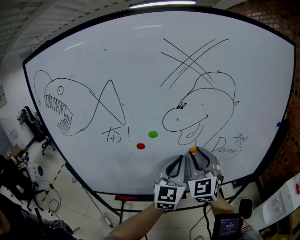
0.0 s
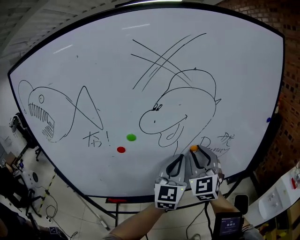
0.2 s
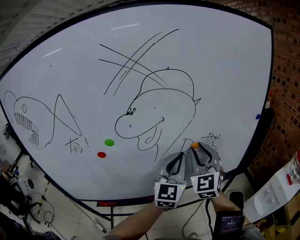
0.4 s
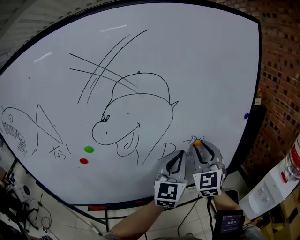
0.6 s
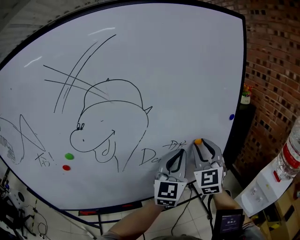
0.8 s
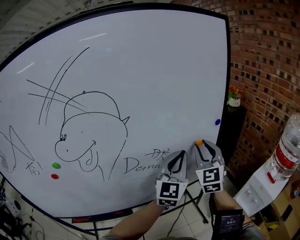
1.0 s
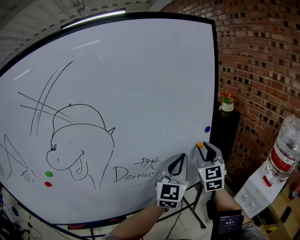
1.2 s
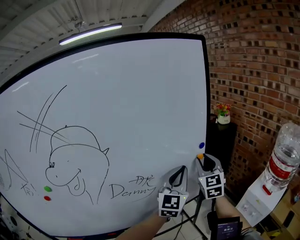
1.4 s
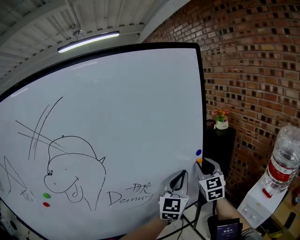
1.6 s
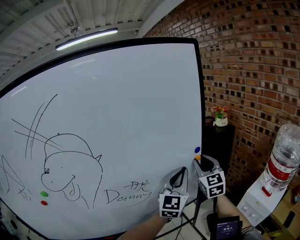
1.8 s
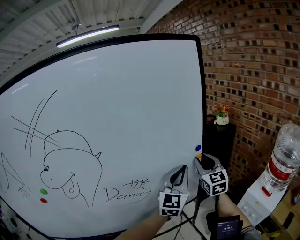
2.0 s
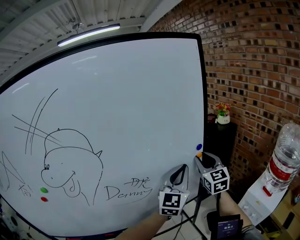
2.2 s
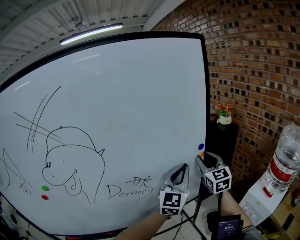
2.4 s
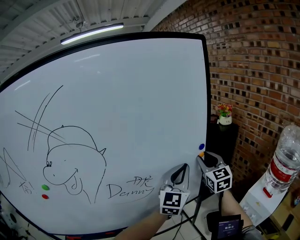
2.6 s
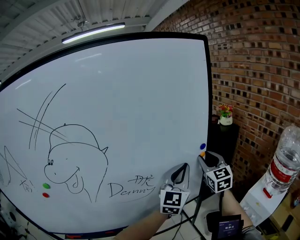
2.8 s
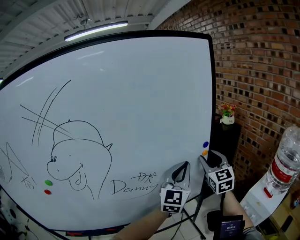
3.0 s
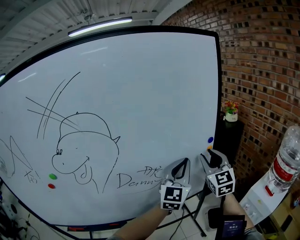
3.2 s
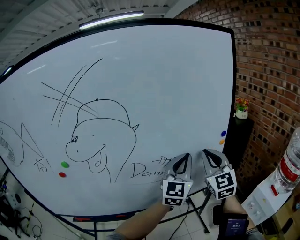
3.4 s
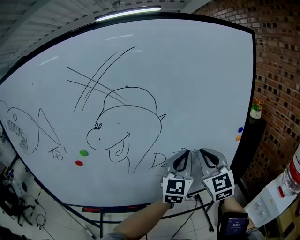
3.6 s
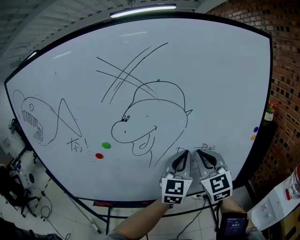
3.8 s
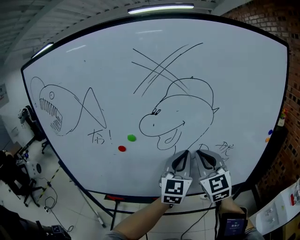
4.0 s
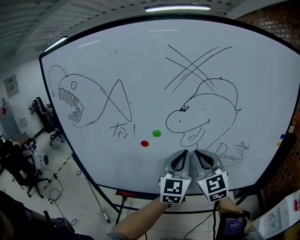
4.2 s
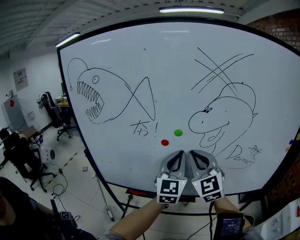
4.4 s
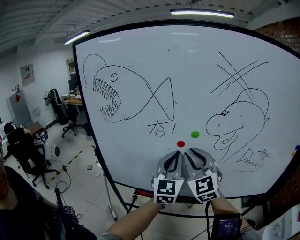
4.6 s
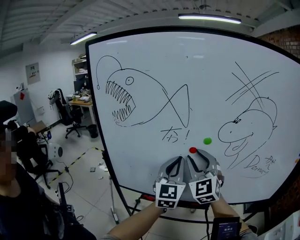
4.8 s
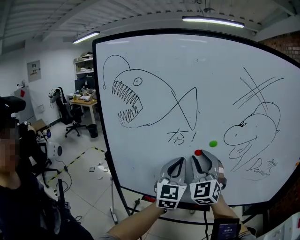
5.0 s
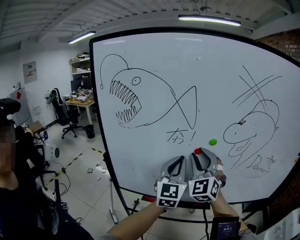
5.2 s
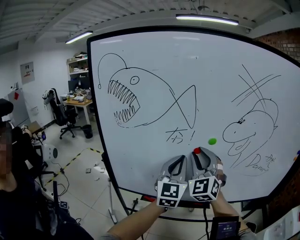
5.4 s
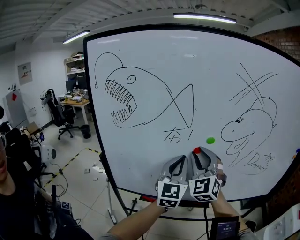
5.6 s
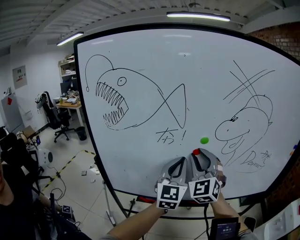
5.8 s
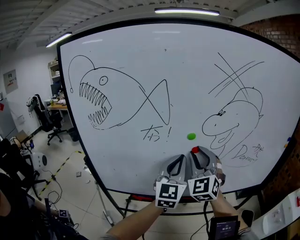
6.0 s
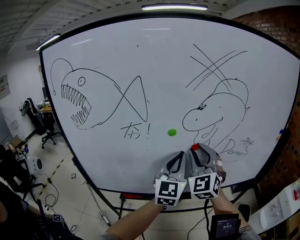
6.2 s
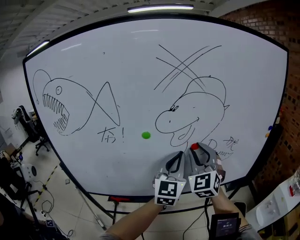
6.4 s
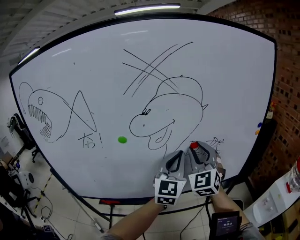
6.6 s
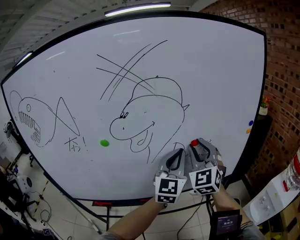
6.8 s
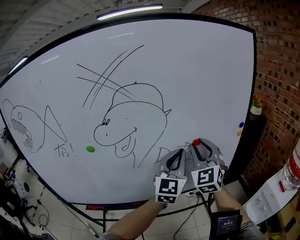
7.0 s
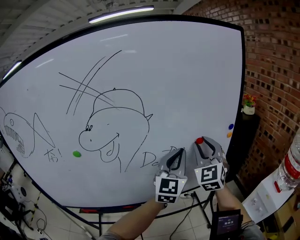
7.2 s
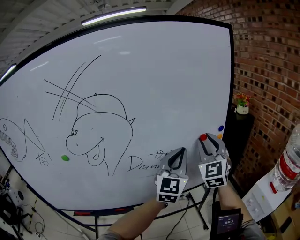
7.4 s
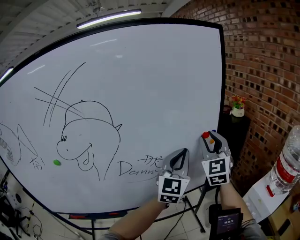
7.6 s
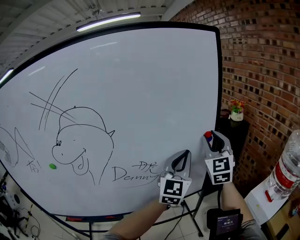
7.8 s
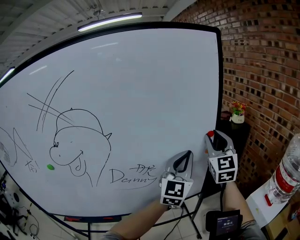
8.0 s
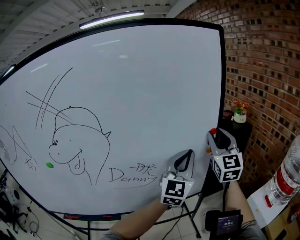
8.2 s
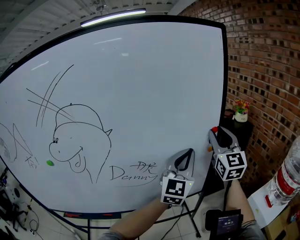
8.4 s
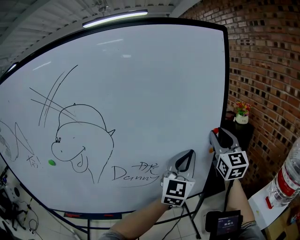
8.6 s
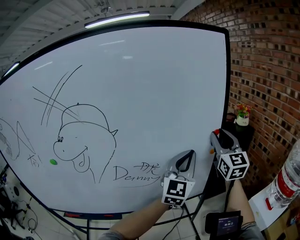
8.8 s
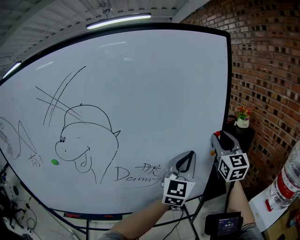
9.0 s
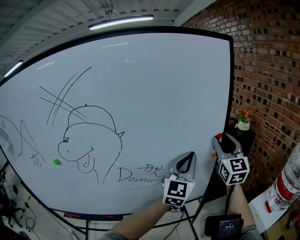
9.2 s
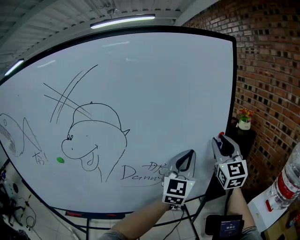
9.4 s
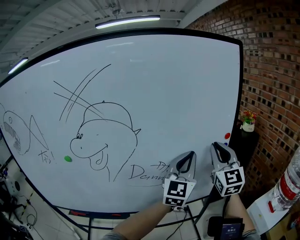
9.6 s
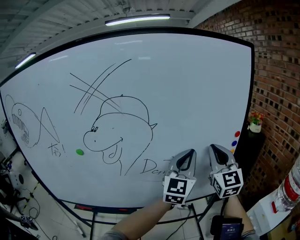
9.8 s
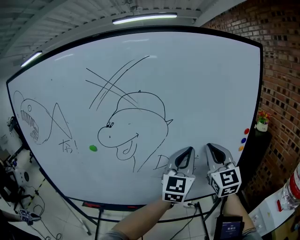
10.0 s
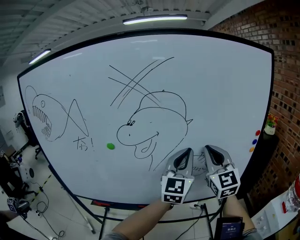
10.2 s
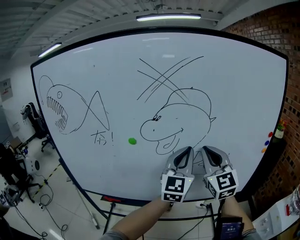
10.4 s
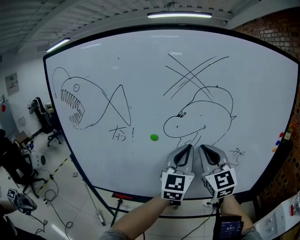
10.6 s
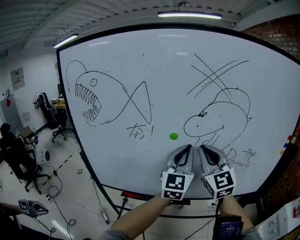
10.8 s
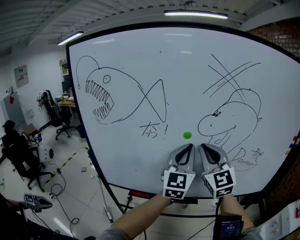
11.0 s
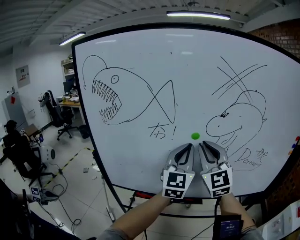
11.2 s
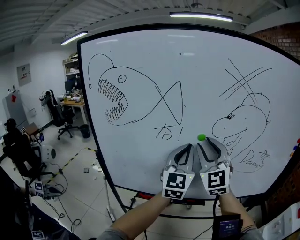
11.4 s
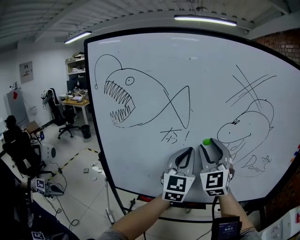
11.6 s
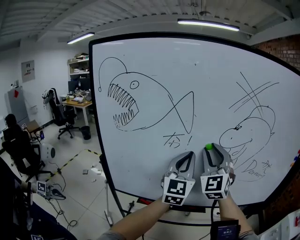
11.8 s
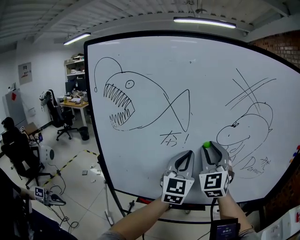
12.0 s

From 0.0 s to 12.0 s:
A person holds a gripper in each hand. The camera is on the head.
From 0.0 s to 1.6 s: Both grippers are carried approximately 50 cm. The right gripper changes its angle by some 30 degrees. The left gripper rotates approximately 30 degrees.
From 1.6 s to 3.0 s: The grippers stay close to where they were, moving slightly.
From 3.0 s to 4.4 s: Both grippers are carried about 60 cm. The left gripper swivels approximately 40 degrees. Meanwhile the right gripper changes its angle by approximately 40 degrees, and closes.
From 4.4 s to 6.0 s: The right gripper moves about 10 cm to the left and comes back, turns by about 20 degrees, and opens up.
From 6.0 s to 7.6 s: The pair of grippers is taken to the right, about 50 cm. The right gripper swivels roughly 30 degrees; the left gripper rotates about 20 degrees.
From 7.6 s to 9.0 s: The right gripper changes place by some 5 cm, and swivels some 20 degrees.
From 9.0 s to 10.4 s: The right gripper heads to the left and backward, covering roughly 40 cm, swivels about 20 degrees, and closes; the left gripper travels to the left by about 30 cm.
From 10.4 s to 12.0 s: The grippers both shift to the left by some 25 cm. The right gripper swivels roughly 20 degrees, and opens up.

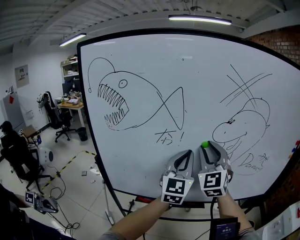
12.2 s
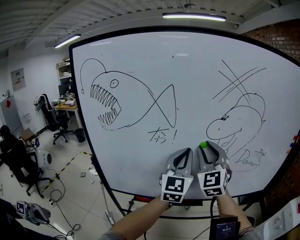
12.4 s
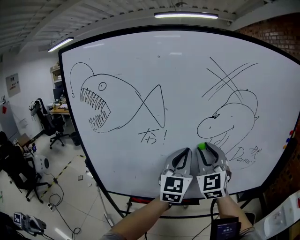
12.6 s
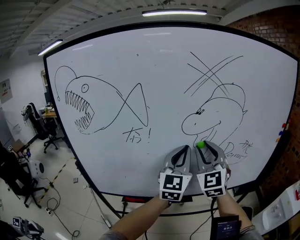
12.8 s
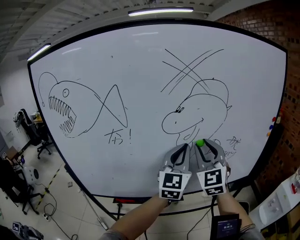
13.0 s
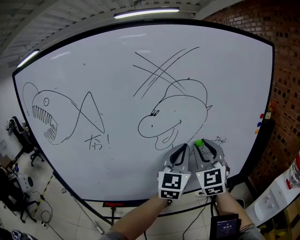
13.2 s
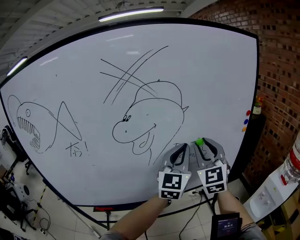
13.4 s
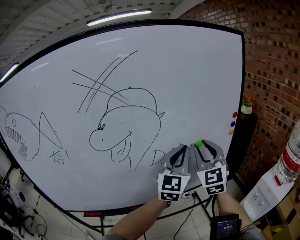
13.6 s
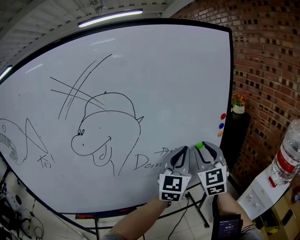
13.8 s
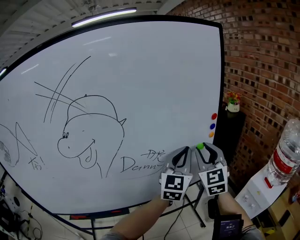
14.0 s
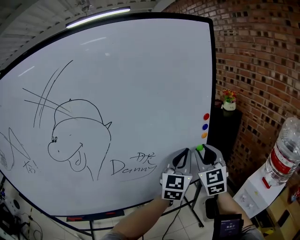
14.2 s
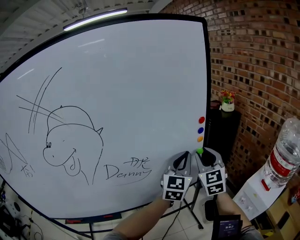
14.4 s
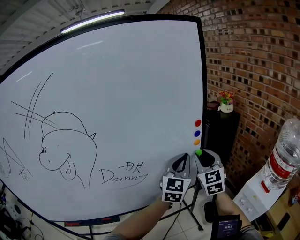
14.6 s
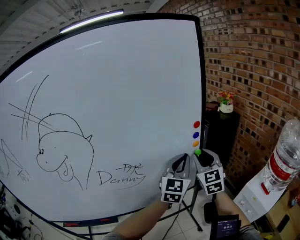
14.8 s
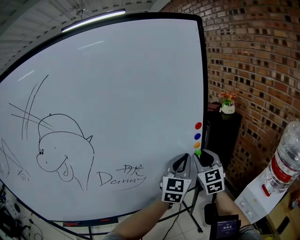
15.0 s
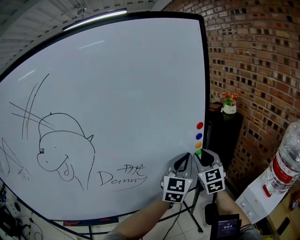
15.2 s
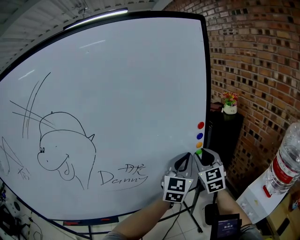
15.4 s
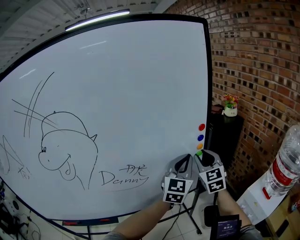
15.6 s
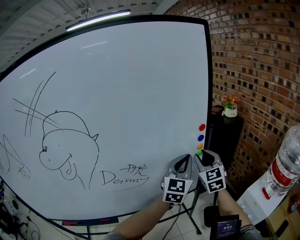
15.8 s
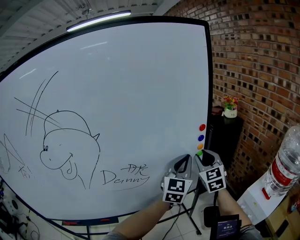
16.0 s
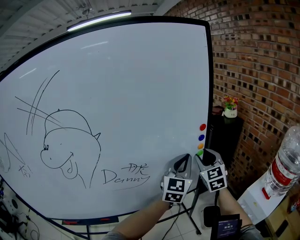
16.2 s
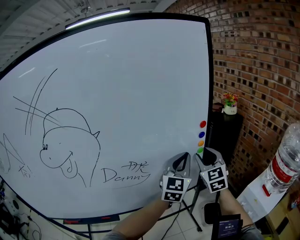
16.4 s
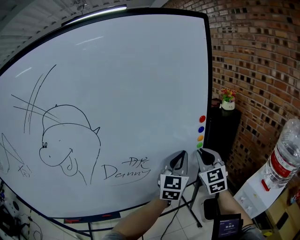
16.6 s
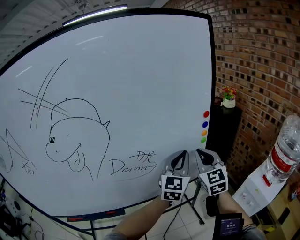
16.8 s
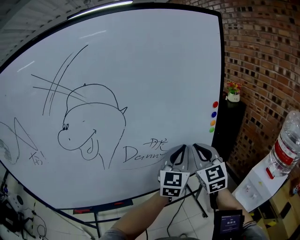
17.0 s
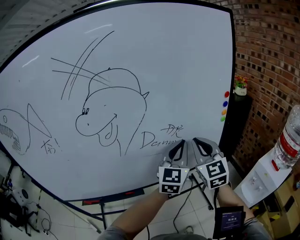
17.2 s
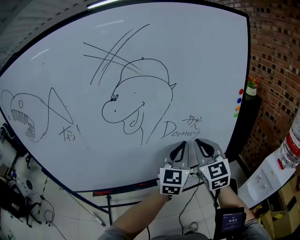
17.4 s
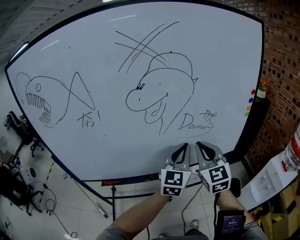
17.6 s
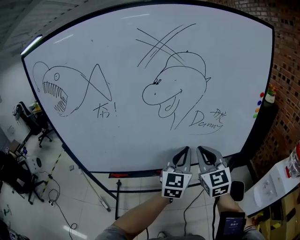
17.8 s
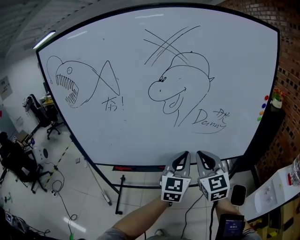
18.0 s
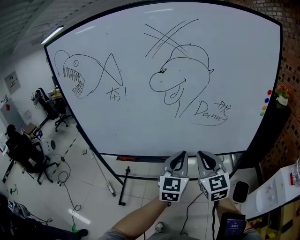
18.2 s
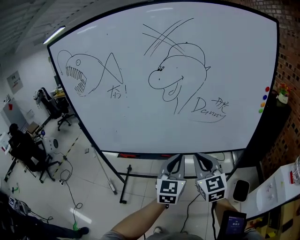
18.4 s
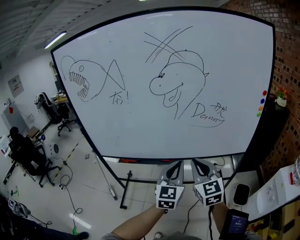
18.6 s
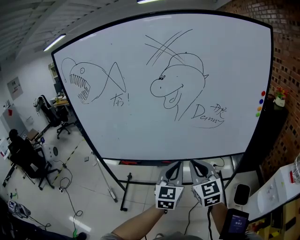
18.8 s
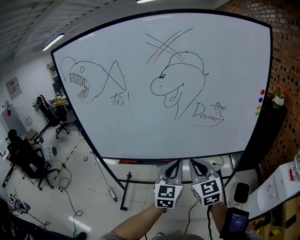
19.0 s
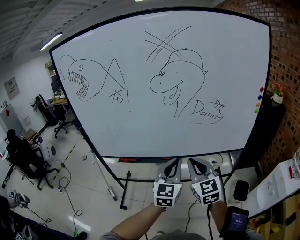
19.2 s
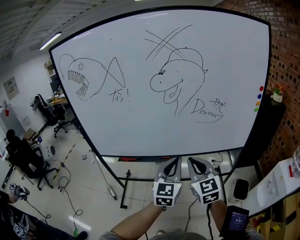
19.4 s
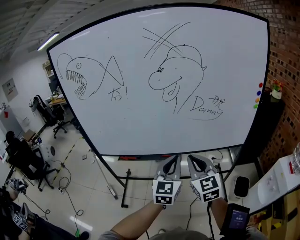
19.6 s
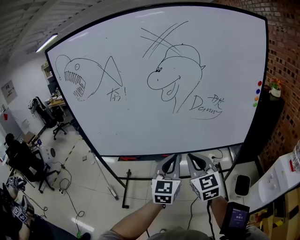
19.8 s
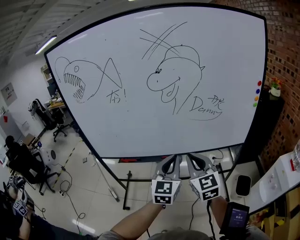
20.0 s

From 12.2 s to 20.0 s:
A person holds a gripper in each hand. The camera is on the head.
From 12.2 s to 13.8 s: Both grippers are carried to the right, some 50 cm. The left gripper changes its angle by about 30 degrees. The right gripper swivels about 20 degrees.
From 13.8 s to 15.4 s: The right gripper is displaced forward, to the right and downward by about 20 cm. Meanwhile the left gripper is displaced to the right, forward and downward by roughly 20 cm.
From 15.4 s to 16.8 s: The right gripper is displaced backward by about 10 cm, and closes up, while the left gripper goes approximately 5 cm backward.
From 16.8 s to 18.4 s: The right gripper changes place by roughly 40 cm, and swivels about 30 degrees. The left gripper changes place by roughly 40 cm, and turns by about 30 degrees.
From 18.4 s to 20.0 s: The grippers stay close to where they were, moving slightly.

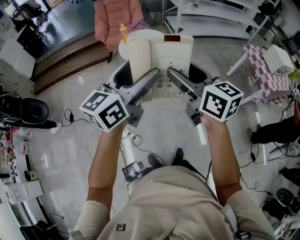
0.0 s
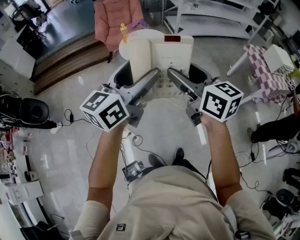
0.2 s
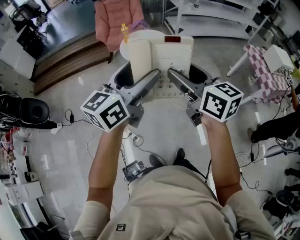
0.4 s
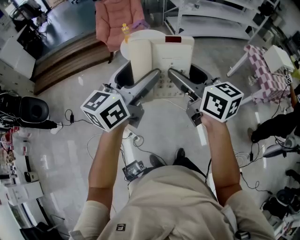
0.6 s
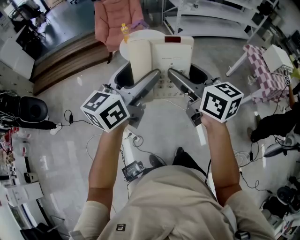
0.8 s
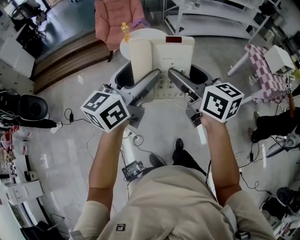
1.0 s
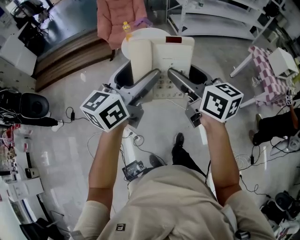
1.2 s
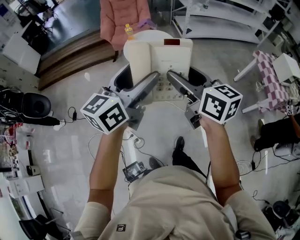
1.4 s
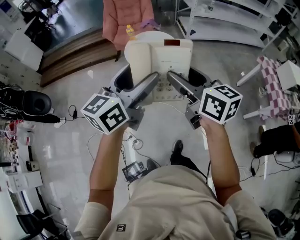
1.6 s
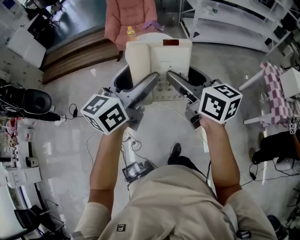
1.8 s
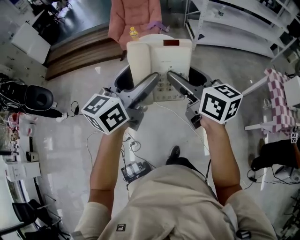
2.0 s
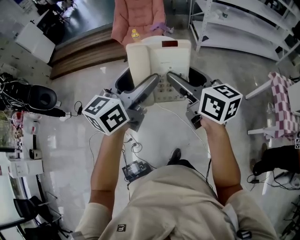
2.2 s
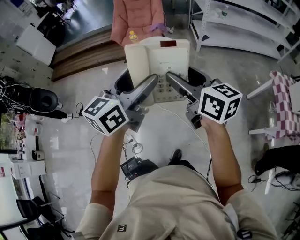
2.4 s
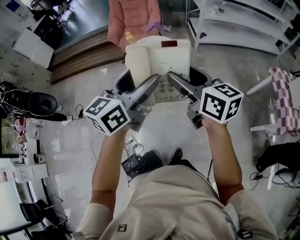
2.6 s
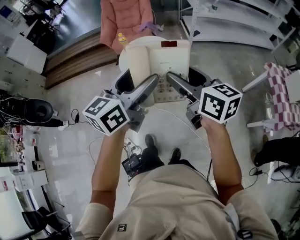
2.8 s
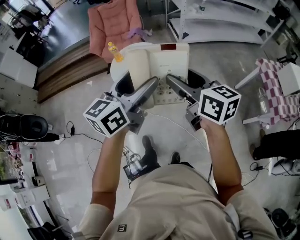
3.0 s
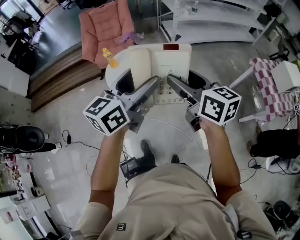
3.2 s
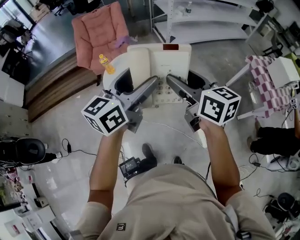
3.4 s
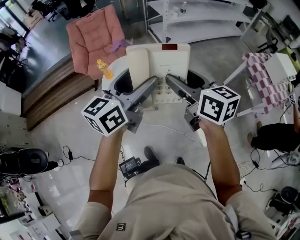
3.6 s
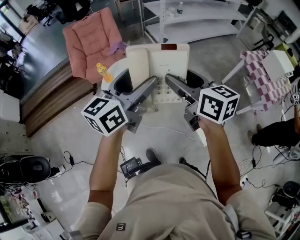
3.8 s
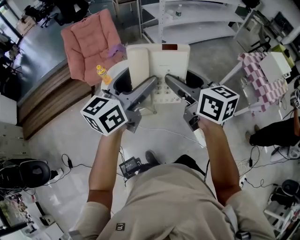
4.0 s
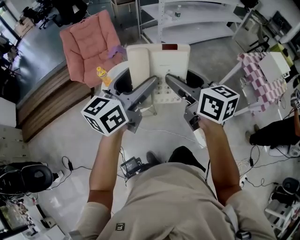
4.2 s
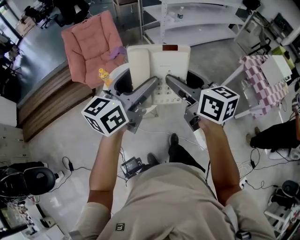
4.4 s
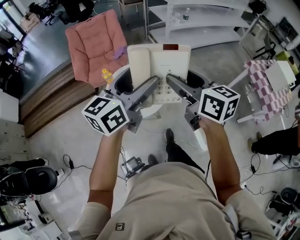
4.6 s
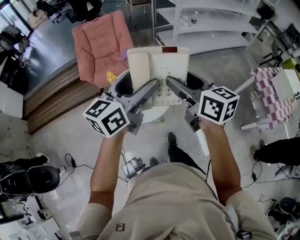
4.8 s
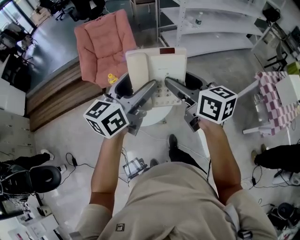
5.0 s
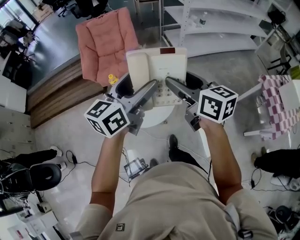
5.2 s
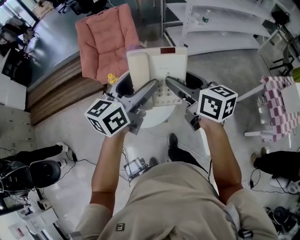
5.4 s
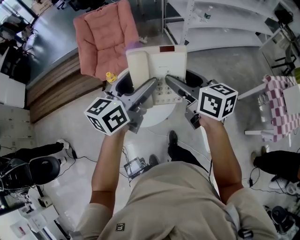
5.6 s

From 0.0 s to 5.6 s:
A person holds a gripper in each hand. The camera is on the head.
From 0.0 s to 1.4 s: Both grippers move forward, some 5 cm.
From 1.4 s to 2.8 s: The grippers both shift forward and to the right by some 20 cm.
From 2.8 s to 4.2 s: The grippers both shift forward and to the left by some 15 cm. The left gripper turns by approximately 20 degrees; the right gripper turns by some 20 degrees.
From 4.2 s to 5.6 s: Both grippers move forward, approximately 20 cm.
